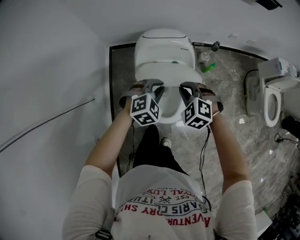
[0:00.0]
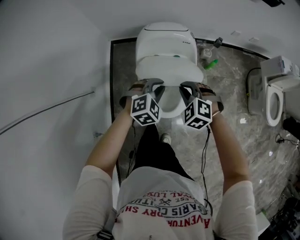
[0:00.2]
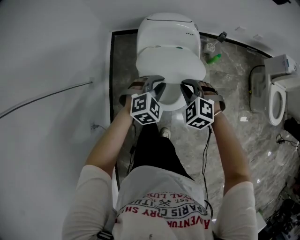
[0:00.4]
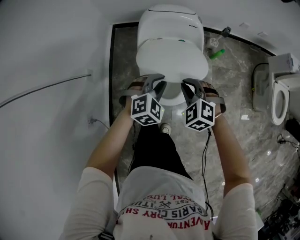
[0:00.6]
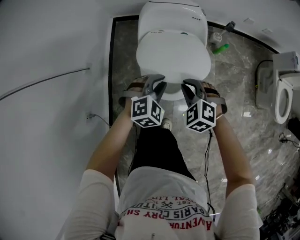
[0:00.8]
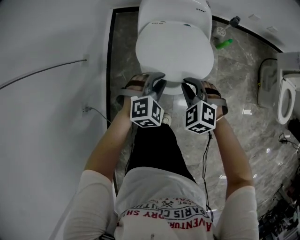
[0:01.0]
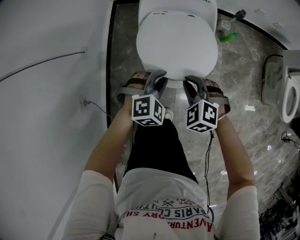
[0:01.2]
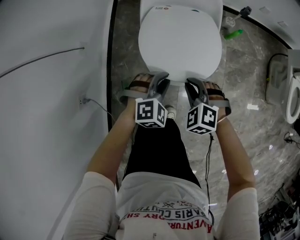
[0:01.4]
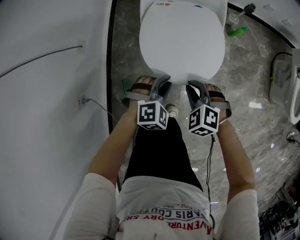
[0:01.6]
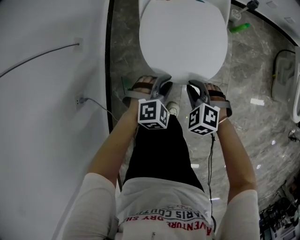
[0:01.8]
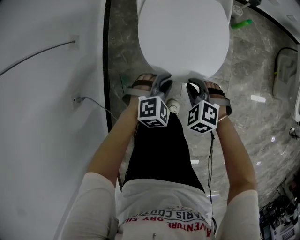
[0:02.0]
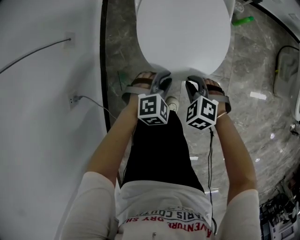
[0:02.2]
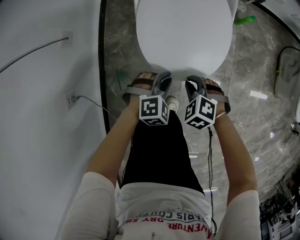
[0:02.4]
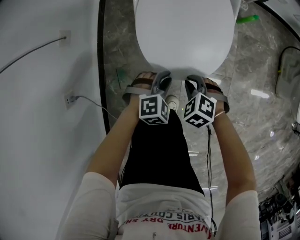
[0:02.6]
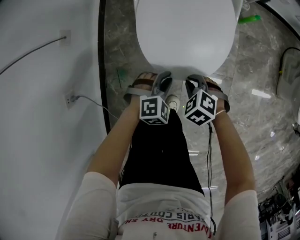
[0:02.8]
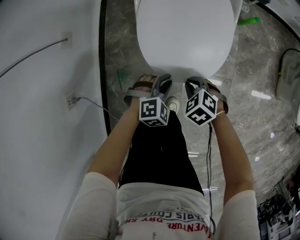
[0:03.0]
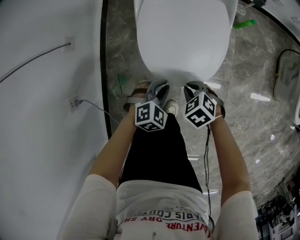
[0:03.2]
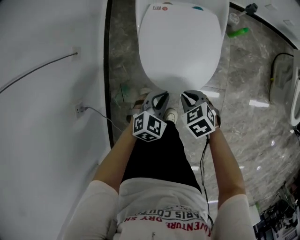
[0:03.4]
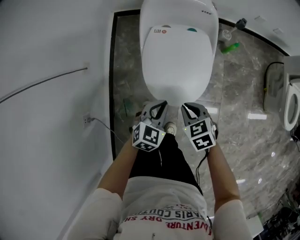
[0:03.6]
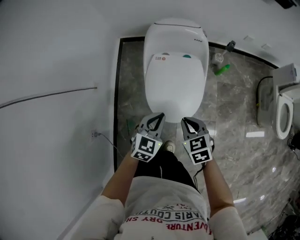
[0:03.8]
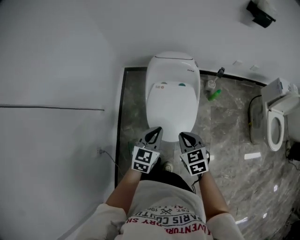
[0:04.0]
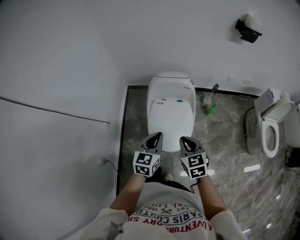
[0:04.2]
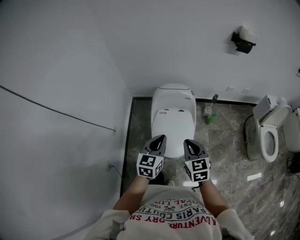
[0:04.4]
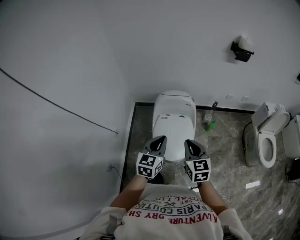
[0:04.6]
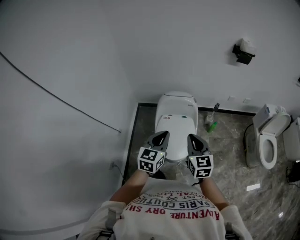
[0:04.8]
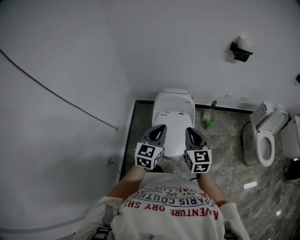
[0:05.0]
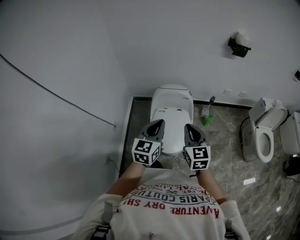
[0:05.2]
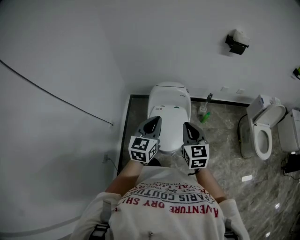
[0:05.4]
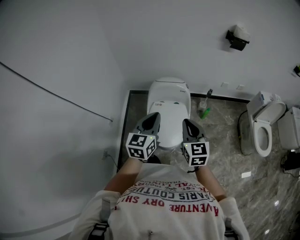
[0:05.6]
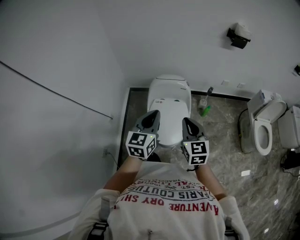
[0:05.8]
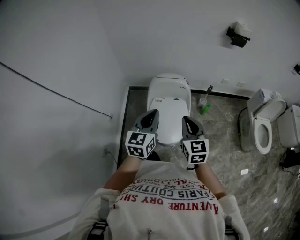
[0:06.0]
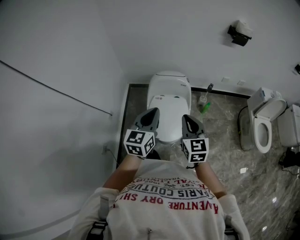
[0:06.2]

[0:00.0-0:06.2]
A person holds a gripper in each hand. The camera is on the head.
0:00.0 to 0:01.6: The two grippers go roughly 30 cm downward and backward.
0:01.6 to 0:03.2: The grippers both shift downward by roughly 10 cm. The right gripper rotates roughly 30 degrees.
0:03.2 to 0:04.6: Both grippers move upward, about 60 cm. The left gripper tips its fingers upward by approximately 40 degrees; the right gripper tilts its fingers roughly 50 degrees upward.
0:04.6 to 0:06.2: The left gripper moves upward, some 5 cm.

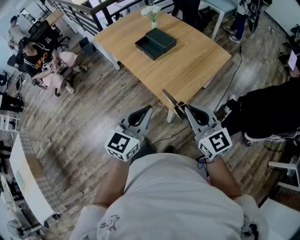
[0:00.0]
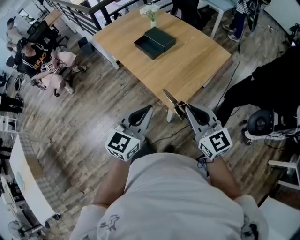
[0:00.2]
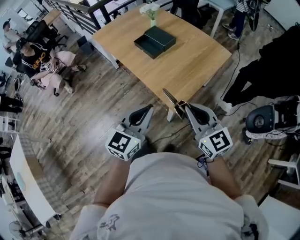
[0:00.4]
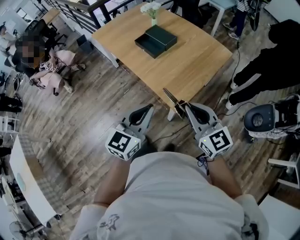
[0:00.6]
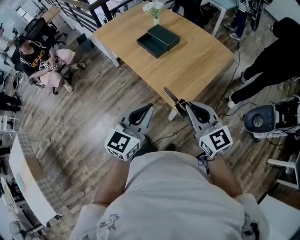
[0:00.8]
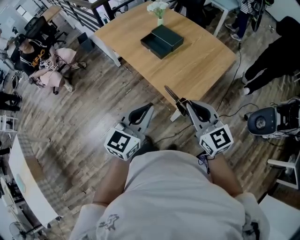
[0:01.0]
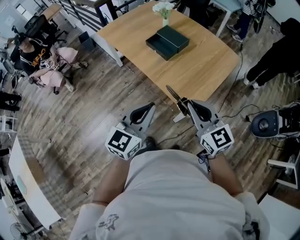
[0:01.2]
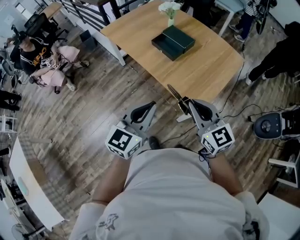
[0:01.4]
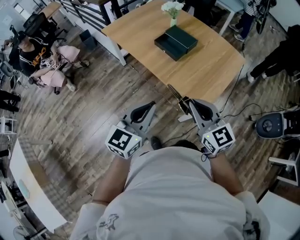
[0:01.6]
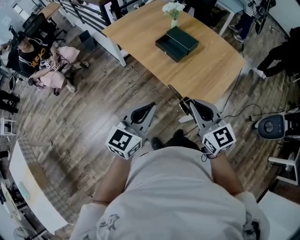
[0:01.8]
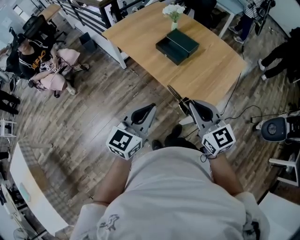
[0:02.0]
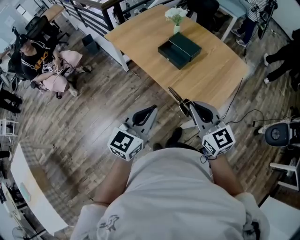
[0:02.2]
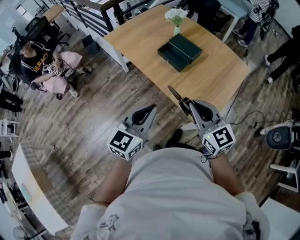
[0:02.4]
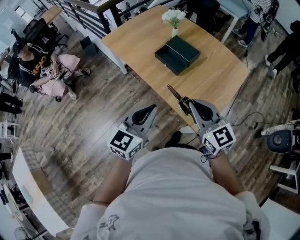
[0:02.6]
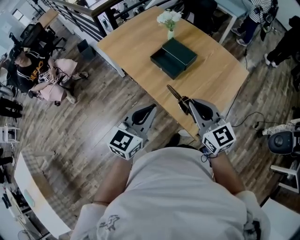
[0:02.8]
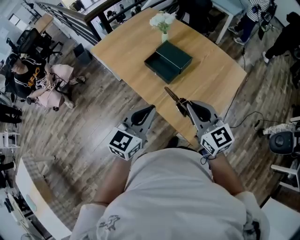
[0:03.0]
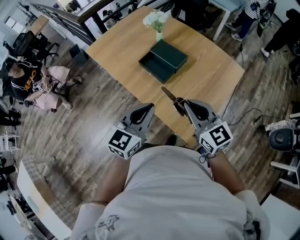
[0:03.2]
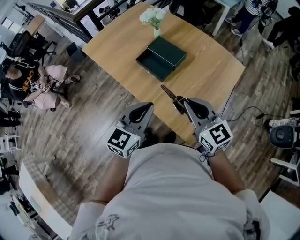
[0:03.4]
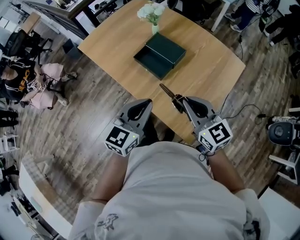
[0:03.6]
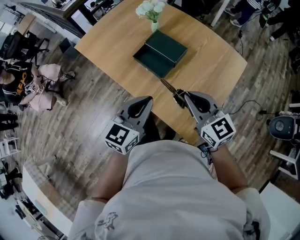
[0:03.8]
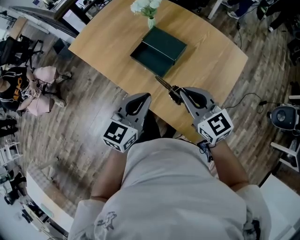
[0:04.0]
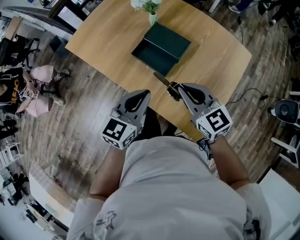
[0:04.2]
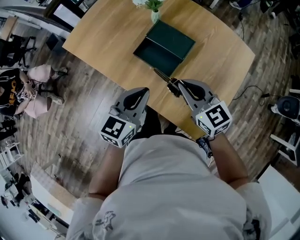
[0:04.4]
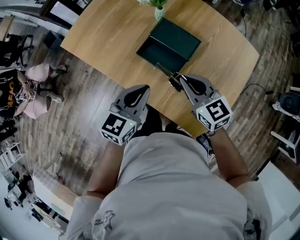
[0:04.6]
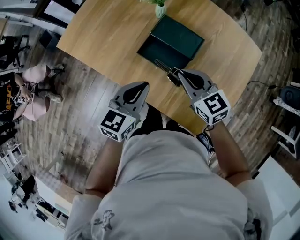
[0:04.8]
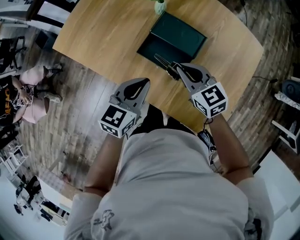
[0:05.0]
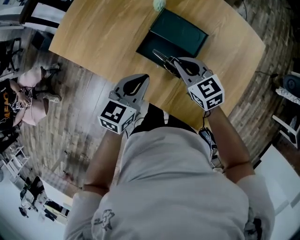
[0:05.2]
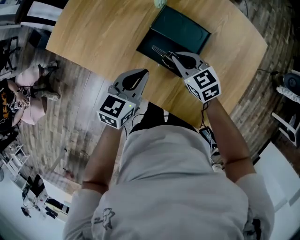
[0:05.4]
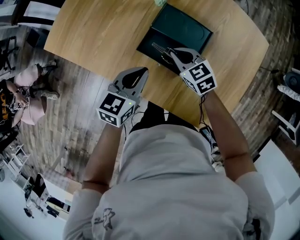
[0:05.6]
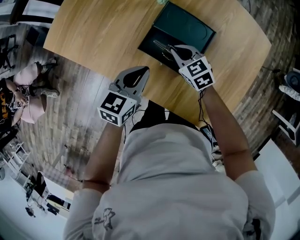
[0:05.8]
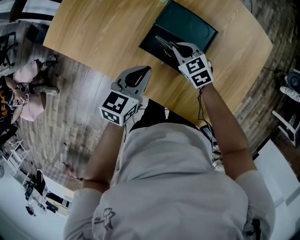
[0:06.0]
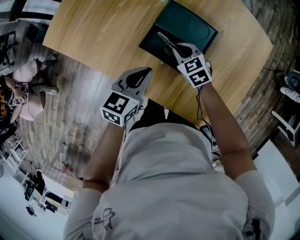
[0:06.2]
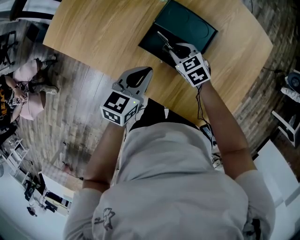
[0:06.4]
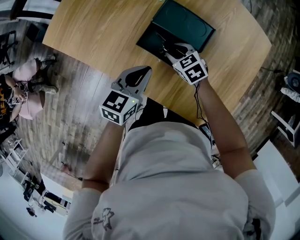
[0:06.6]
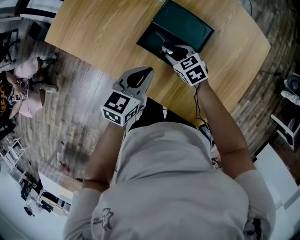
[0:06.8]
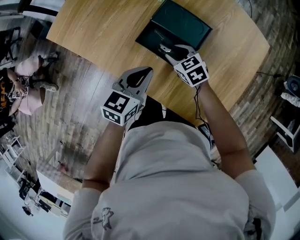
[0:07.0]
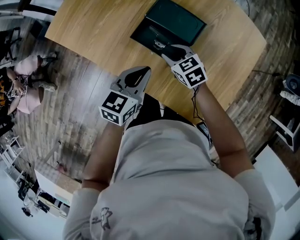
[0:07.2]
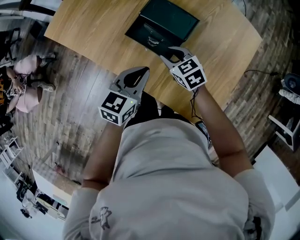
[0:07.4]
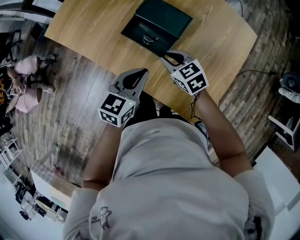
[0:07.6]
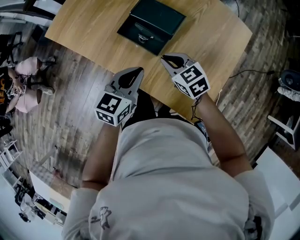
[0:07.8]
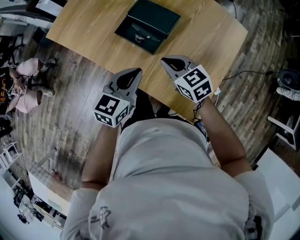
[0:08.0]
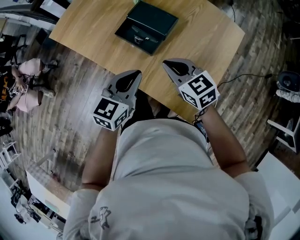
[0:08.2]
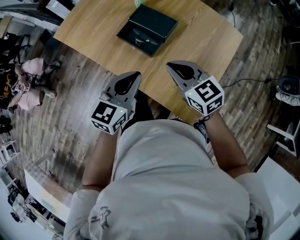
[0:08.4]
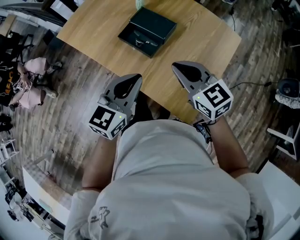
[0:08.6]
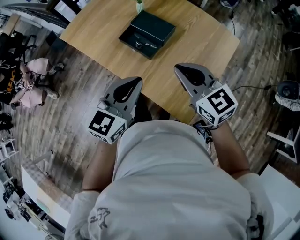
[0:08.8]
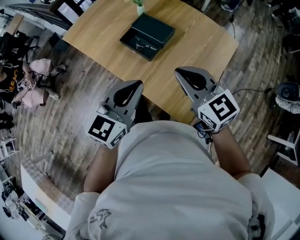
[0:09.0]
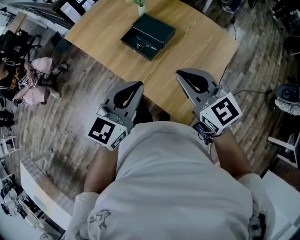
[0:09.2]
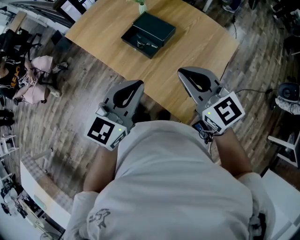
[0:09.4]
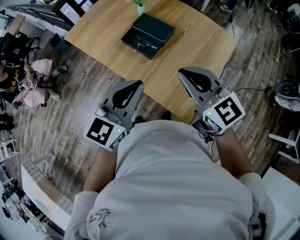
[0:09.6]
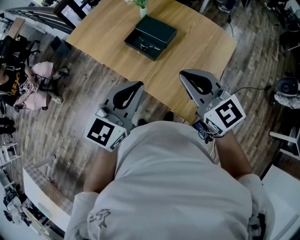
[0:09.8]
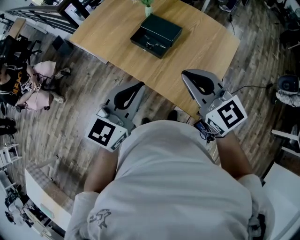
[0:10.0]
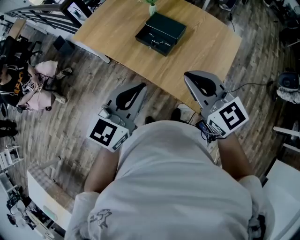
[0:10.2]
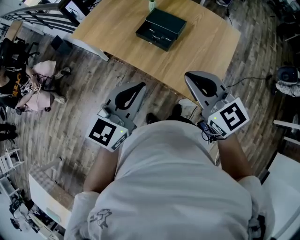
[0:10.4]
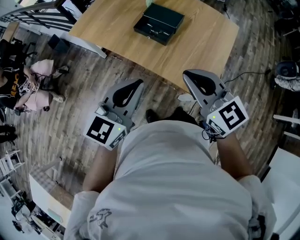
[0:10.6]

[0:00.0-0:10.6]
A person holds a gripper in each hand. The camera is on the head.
0:00.0 to 0:01.6: Both grippers move to the left and forward, approximately 20 cm.
0:01.6 to 0:03.0: Both grippers move forward, some 20 cm.
0:03.0 to 0:04.6: The two grippers go about 25 cm forward and downward.
0:04.6 to 0:06.0: The left gripper heads downward and forward, covering approximately 15 cm, while the right gripper shifts roughly 25 cm downward and forward, and rotates some 20 degrees.
0:06.0 to 0:07.6: The right gripper shifts some 15 cm backward and upward. Meanwhile the left gripper goes approximately 15 cm backward and to the right.
0:07.6 to 0:09.0: The grippers both shift upward and backward by some 25 cm. The right gripper swivels roughly 30 degrees.
0:09.0 to 0:10.6: Both grippers move to the left and backward, approximately 15 cm.

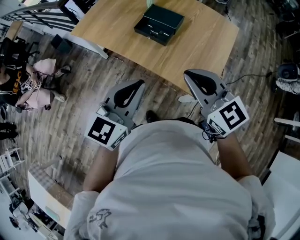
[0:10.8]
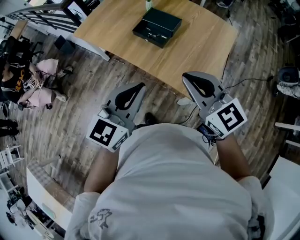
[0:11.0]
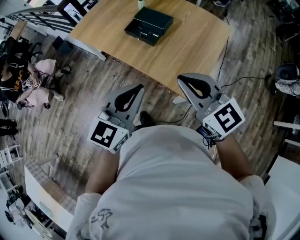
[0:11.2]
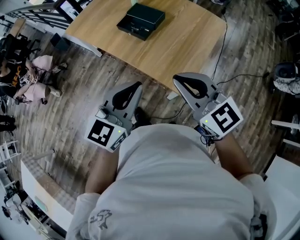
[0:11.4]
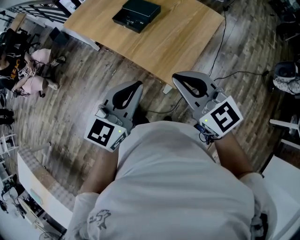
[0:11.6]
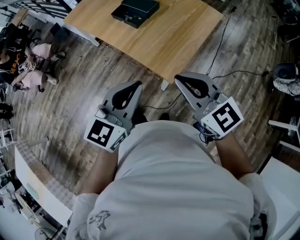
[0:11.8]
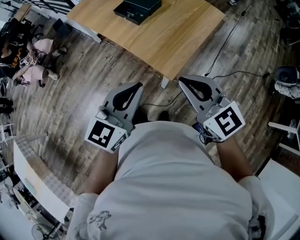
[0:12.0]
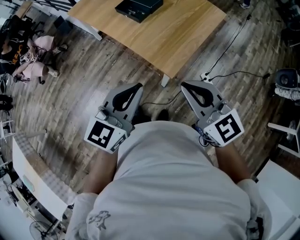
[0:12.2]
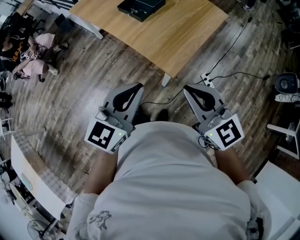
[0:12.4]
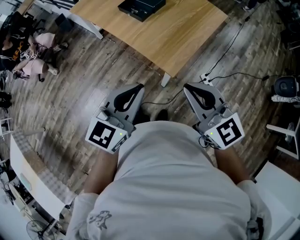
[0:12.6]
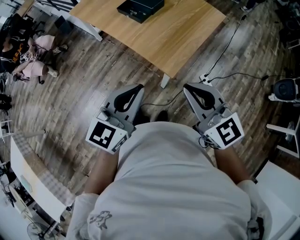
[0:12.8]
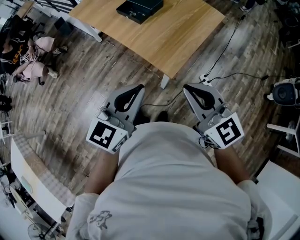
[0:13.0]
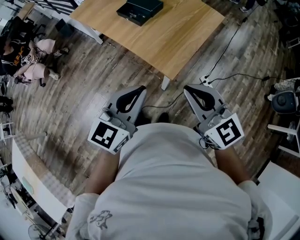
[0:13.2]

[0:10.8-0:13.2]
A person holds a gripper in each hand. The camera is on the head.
0:10.8 to 0:12.0: The left gripper travels to the right and backward by some 25 cm. Meanwhile the right gripper travels backward and to the right by approximately 25 cm.
0:12.0 to 0:13.2: There are only small adjustments of the grippers.

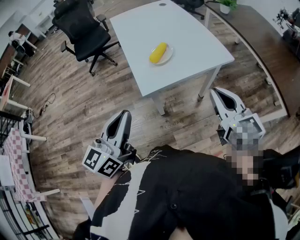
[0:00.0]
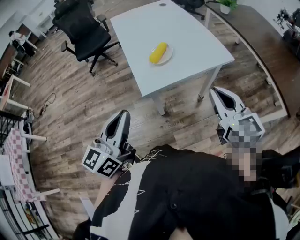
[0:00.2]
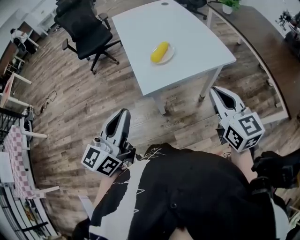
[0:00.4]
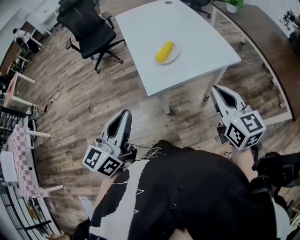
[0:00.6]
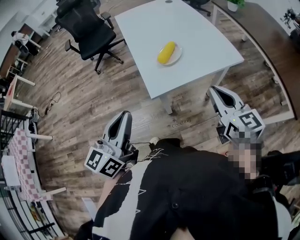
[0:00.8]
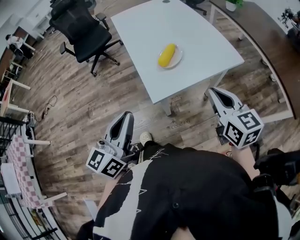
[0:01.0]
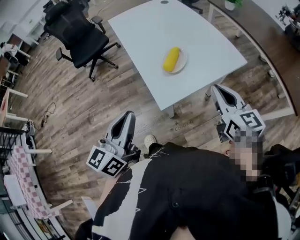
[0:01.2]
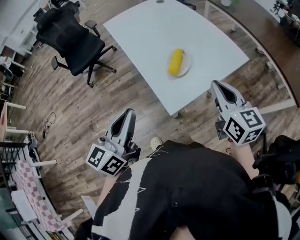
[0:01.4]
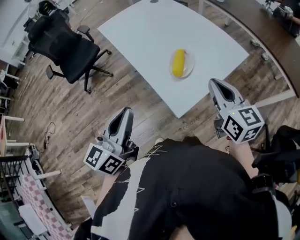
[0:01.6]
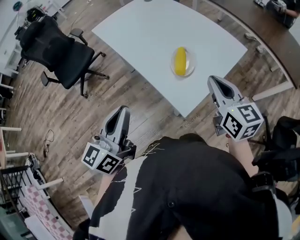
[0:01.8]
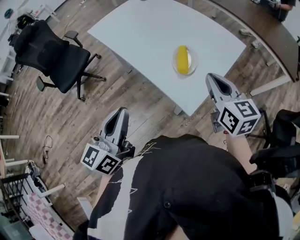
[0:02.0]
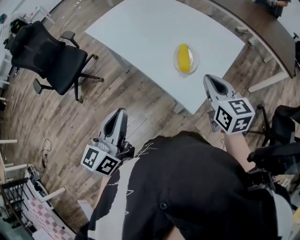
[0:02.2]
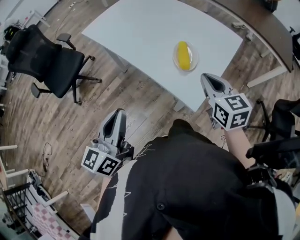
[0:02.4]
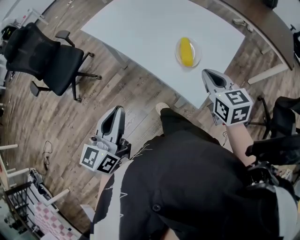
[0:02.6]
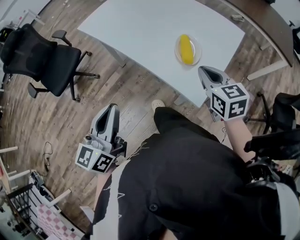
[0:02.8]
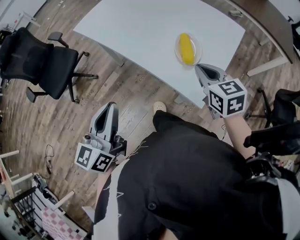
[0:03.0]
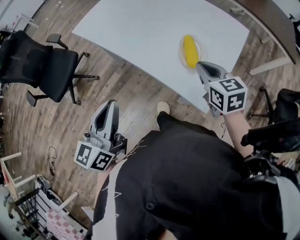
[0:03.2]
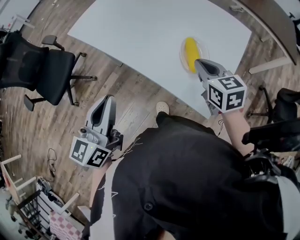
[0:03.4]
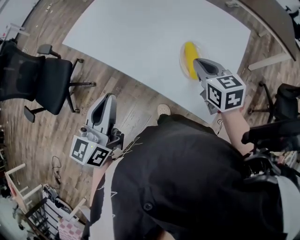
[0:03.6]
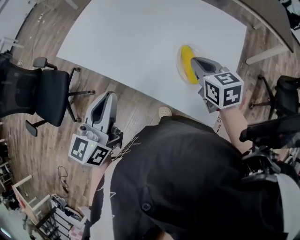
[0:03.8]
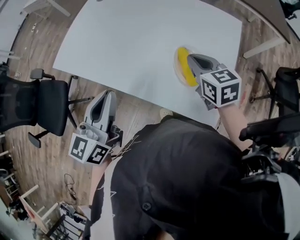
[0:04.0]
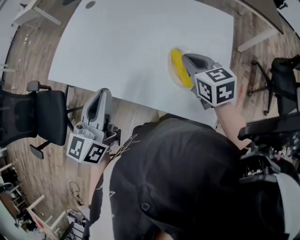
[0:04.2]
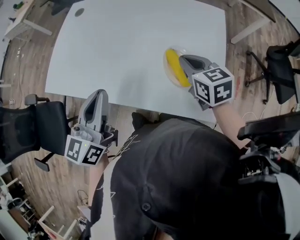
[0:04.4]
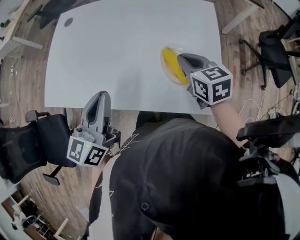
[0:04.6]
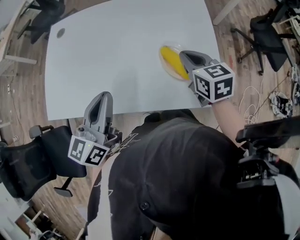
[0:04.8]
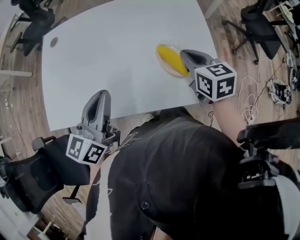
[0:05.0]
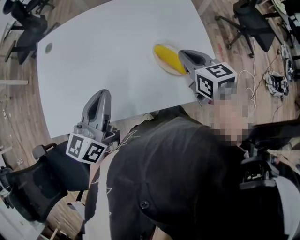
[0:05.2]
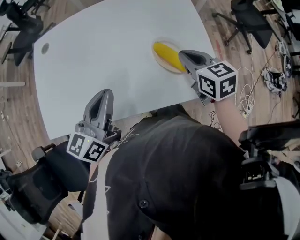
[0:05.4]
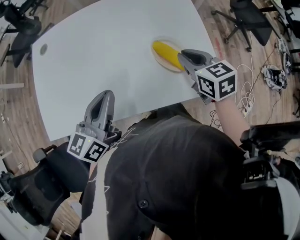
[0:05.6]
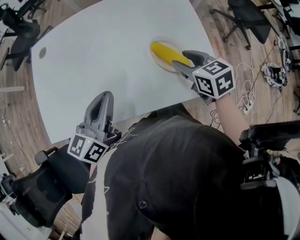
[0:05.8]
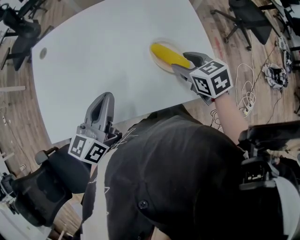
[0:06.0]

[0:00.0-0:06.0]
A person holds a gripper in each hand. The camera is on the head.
0:00.0 to 0:01.6: The left gripper is displaced forward and to the left by about 25 cm, while the right gripper travels to the left and forward by roughly 20 cm.
0:01.6 to 0:03.0: The right gripper is displaced to the left and downward by roughly 15 cm; the left gripper shifts approximately 15 cm to the left and forward.
0:03.0 to 0:04.4: The right gripper moves forward, some 15 cm, and swivels some 20 degrees. The left gripper heads forward, covering about 25 cm, and changes its angle by approximately 30 degrees.
0:04.4 to 0:06.0: The right gripper moves approximately 5 cm, rotates roughly 20 degrees, and opens its fingers. Meanwhile the left gripper moves roughly 10 cm, and rotates some 30 degrees.
